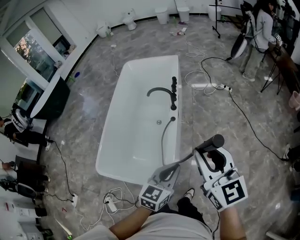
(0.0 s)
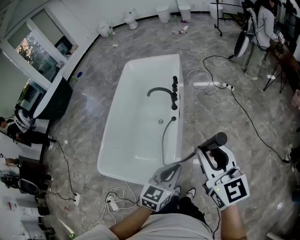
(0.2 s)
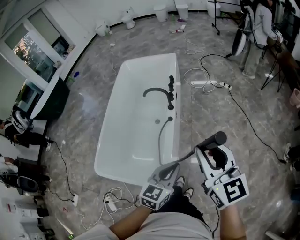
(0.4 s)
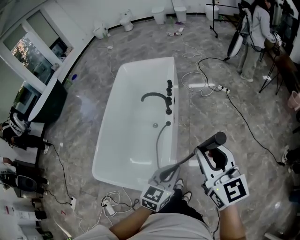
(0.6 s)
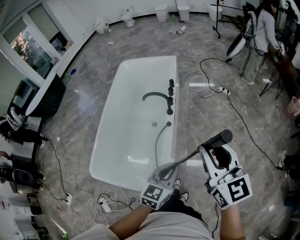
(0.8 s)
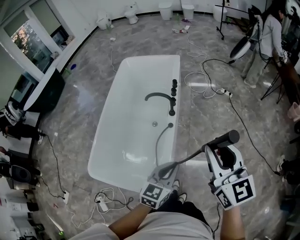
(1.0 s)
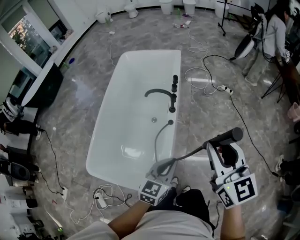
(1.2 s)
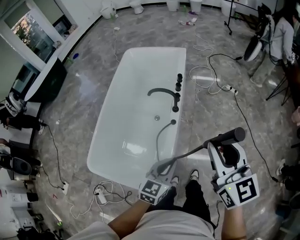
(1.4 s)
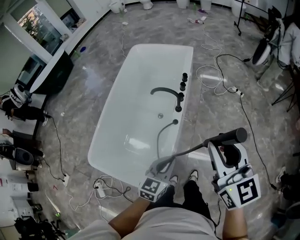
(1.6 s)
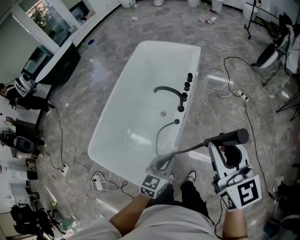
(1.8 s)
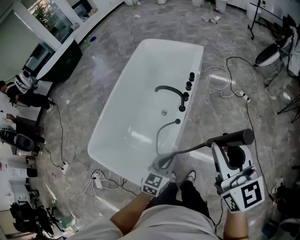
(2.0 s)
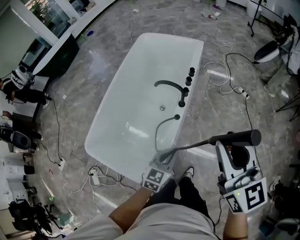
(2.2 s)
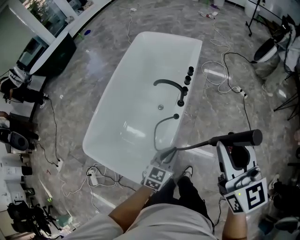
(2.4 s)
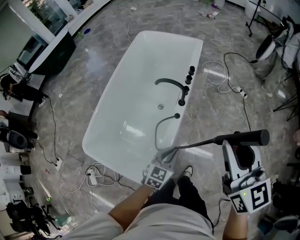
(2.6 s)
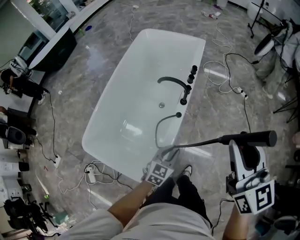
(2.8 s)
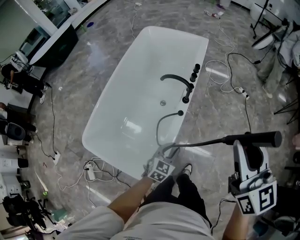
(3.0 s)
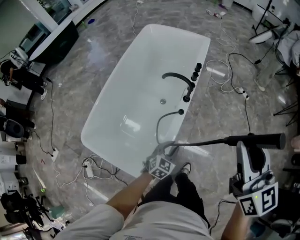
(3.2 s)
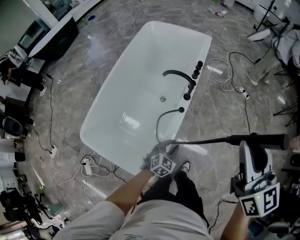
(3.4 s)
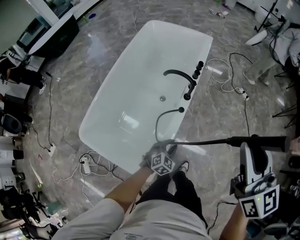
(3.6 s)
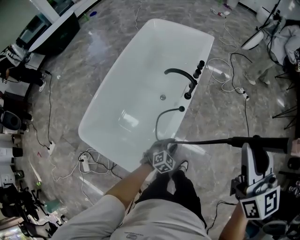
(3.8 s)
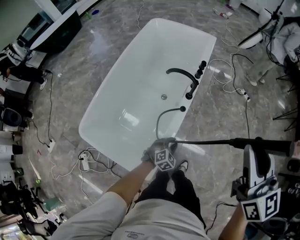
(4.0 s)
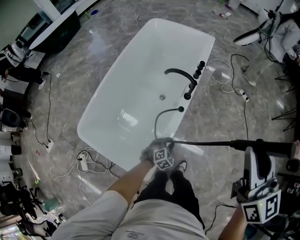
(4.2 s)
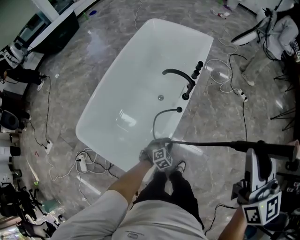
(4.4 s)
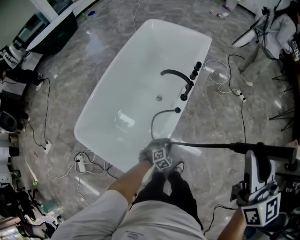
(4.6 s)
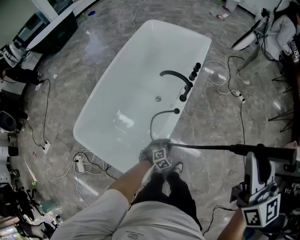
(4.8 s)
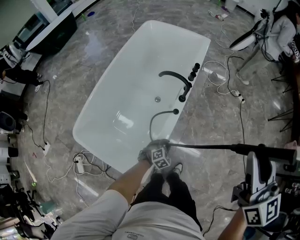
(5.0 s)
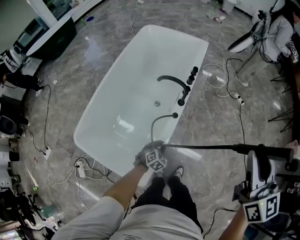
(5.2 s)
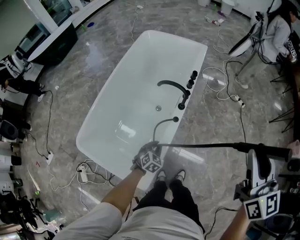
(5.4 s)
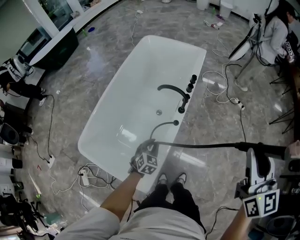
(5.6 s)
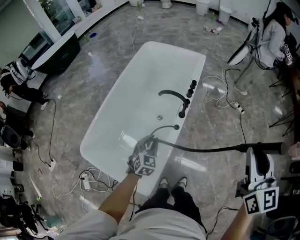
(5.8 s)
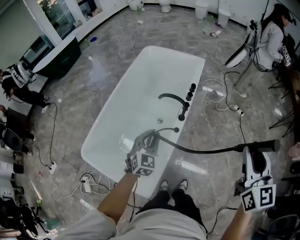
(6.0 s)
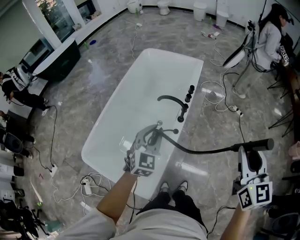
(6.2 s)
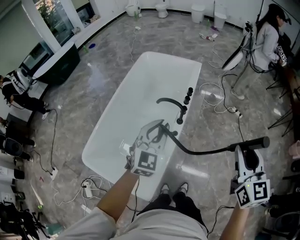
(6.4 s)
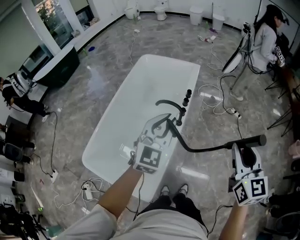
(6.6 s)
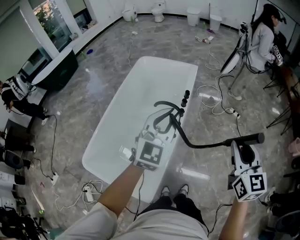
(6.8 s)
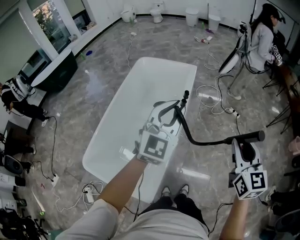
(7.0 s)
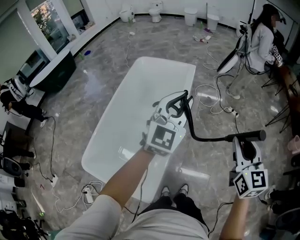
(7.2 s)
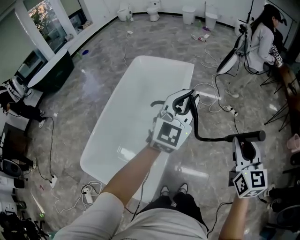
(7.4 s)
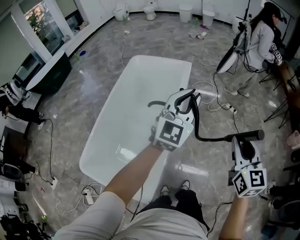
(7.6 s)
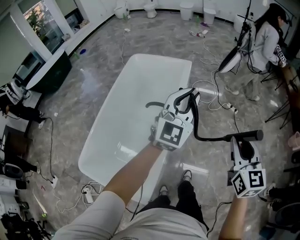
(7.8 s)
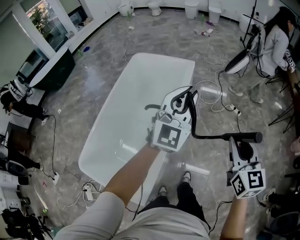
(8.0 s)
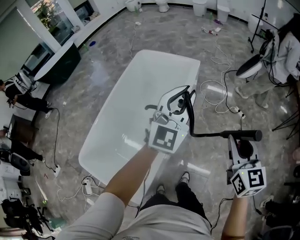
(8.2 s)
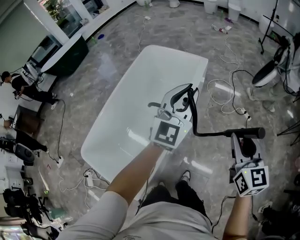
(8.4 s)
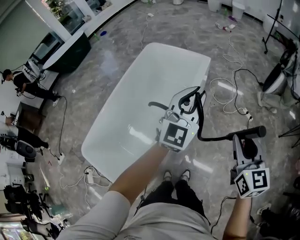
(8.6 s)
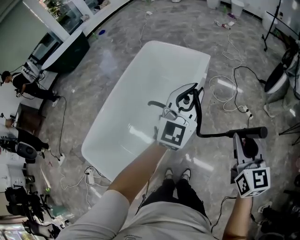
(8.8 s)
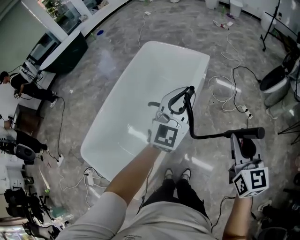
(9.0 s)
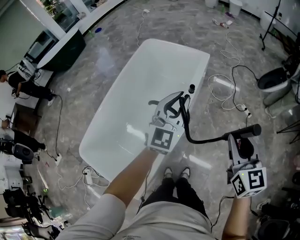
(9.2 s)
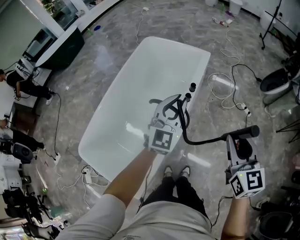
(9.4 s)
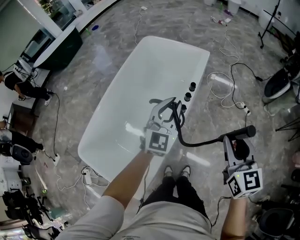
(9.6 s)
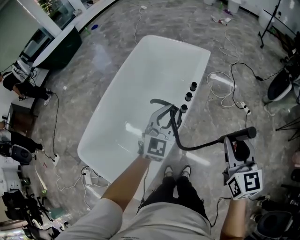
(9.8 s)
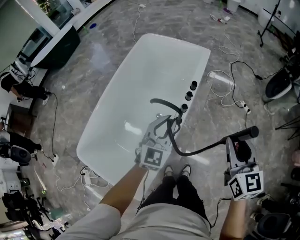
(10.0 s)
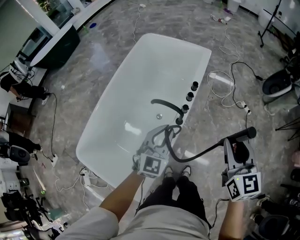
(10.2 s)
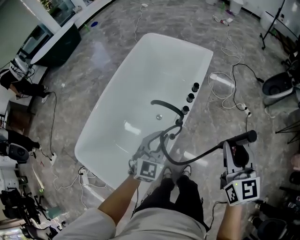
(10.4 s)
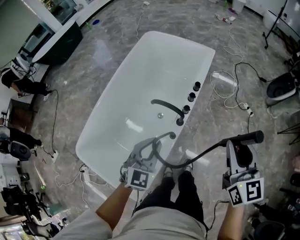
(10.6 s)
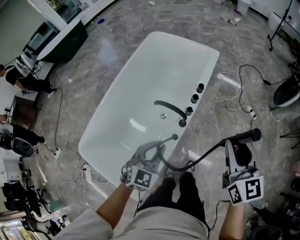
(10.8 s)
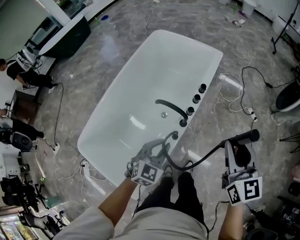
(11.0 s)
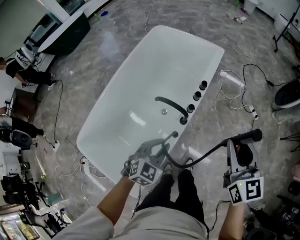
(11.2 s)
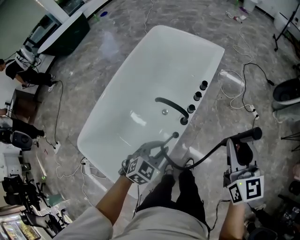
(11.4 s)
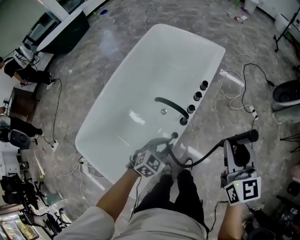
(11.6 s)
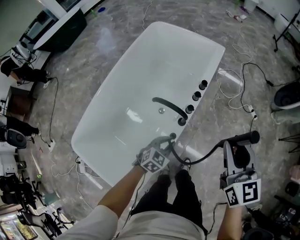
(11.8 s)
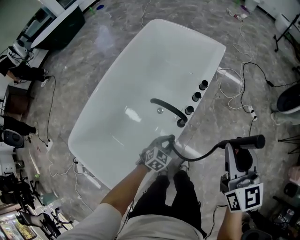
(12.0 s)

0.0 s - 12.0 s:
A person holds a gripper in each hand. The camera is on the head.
0.0 s - 1.6 s: The left gripper moves forward and downward, about 15 cm. Meanwhile the right gripper heads forward, covering approximately 15 cm.
1.6 s - 3.0 s: The left gripper travels downward by roughly 15 cm.
3.0 s - 4.4 s: The left gripper heads downward, covering about 15 cm, and turns by approximately 30 degrees.
4.4 s - 6.0 s: The left gripper is displaced upward by some 30 cm, and tips its fingers upward by roughly 30 degrees; the right gripper goes approximately 5 cm to the right.
6.0 s - 7.6 s: The left gripper shifts roughly 30 cm upward, to the right and forward, and angles its fingers upward, by some 30 degrees.
7.6 s - 9.0 s: Both grippers travel together forward, about 15 cm.
9.0 s - 10.4 s: The left gripper moves downward, to the left and backward, some 25 cm, and changes its angle by about 20 degrees. Meanwhile the right gripper moves to the left, some 10 cm.
10.4 s - 12.0 s: The left gripper travels downward by approximately 25 cm, and rotates approximately 30 degrees. The right gripper travels forward by some 5 cm.

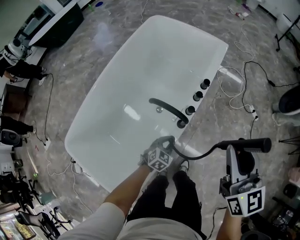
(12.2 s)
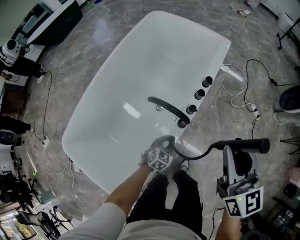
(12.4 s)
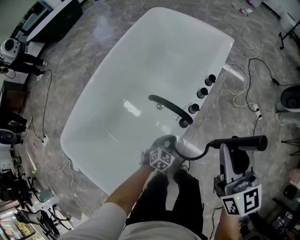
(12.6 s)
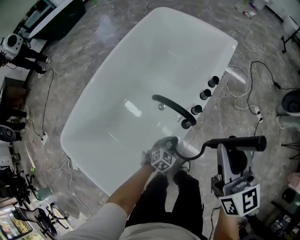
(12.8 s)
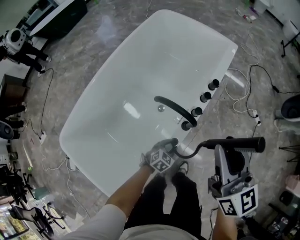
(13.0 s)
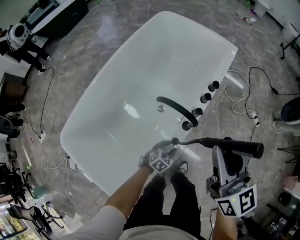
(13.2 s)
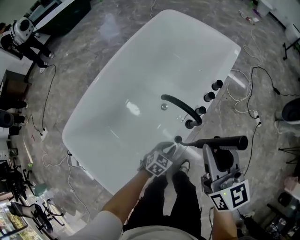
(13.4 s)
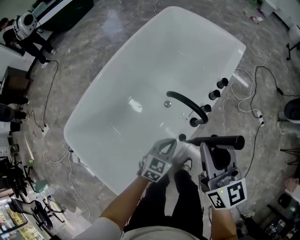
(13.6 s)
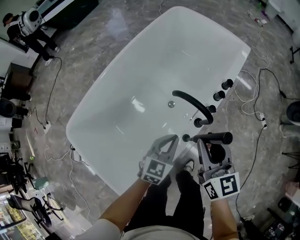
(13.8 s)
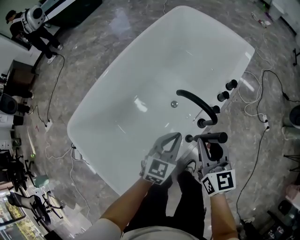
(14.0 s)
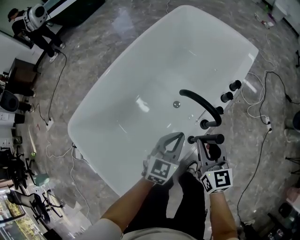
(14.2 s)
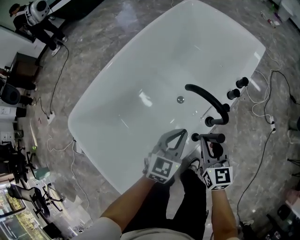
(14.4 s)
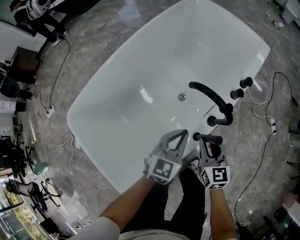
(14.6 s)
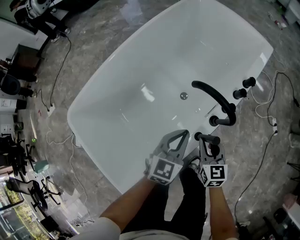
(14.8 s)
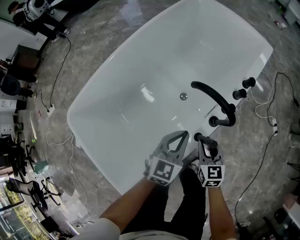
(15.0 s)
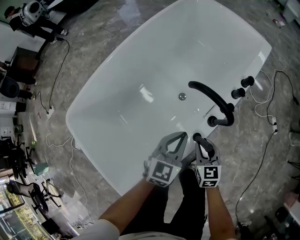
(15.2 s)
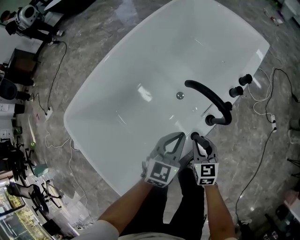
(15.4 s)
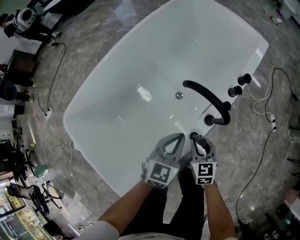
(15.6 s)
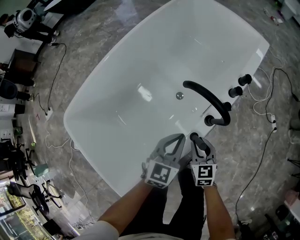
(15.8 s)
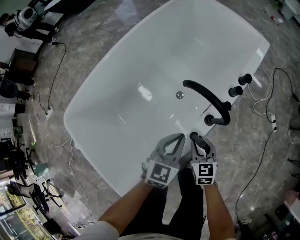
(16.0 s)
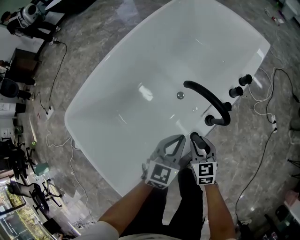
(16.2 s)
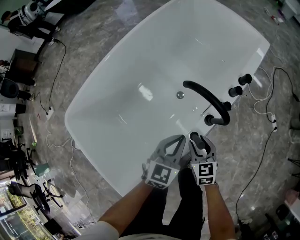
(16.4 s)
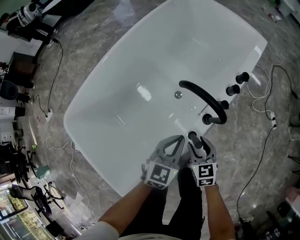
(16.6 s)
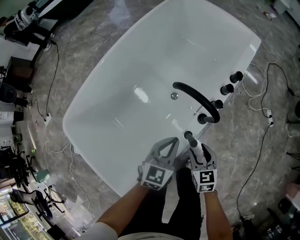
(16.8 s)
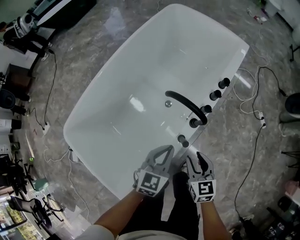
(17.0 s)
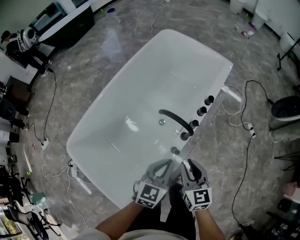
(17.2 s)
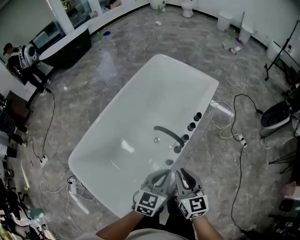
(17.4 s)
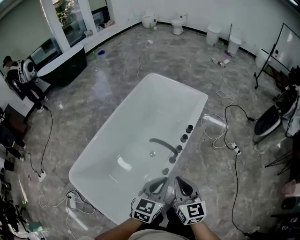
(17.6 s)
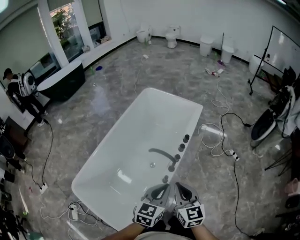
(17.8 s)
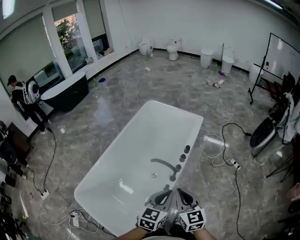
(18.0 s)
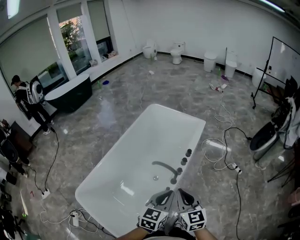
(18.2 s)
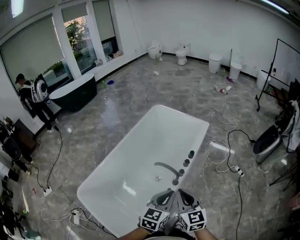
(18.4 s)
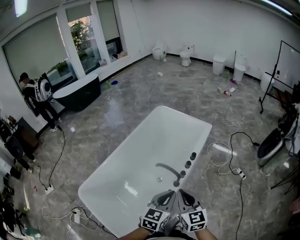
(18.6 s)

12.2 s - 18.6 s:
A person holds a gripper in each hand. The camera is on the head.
12.2 s - 13.8 s: The left gripper travels upward and to the left by approximately 15 cm, and rotates some 30 degrees. The right gripper heads to the left and downward, covering approximately 20 cm.
13.8 s - 15.4 s: The right gripper goes some 25 cm downward, and turns by approximately 20 degrees.
15.4 s - 17.0 s: The right gripper is displaced upward by some 10 cm; the left gripper shifts by about 5 cm.
17.0 s - 18.6 s: Both grippers move upward, some 30 cm. The right gripper changes its angle by approximately 20 degrees, and closes its fingers.

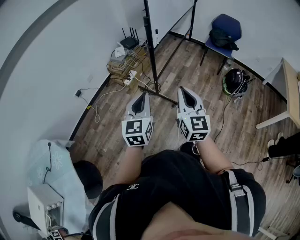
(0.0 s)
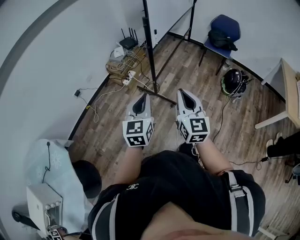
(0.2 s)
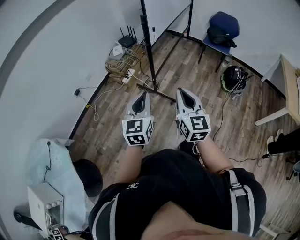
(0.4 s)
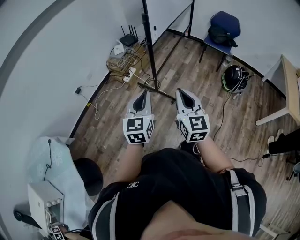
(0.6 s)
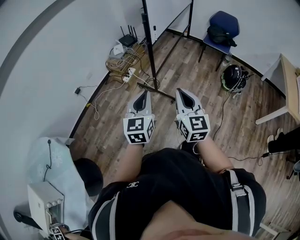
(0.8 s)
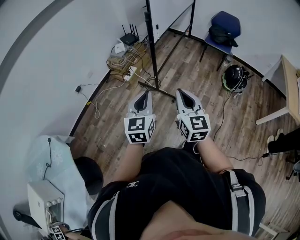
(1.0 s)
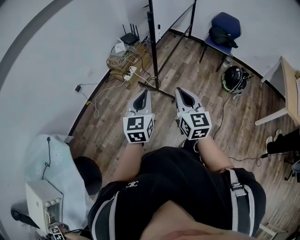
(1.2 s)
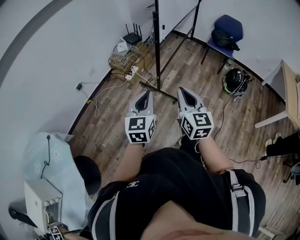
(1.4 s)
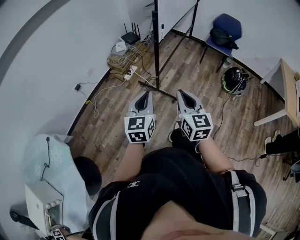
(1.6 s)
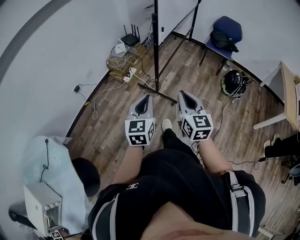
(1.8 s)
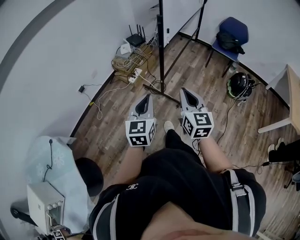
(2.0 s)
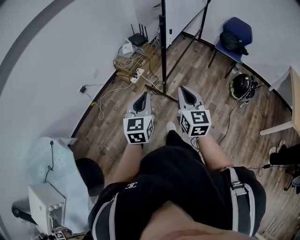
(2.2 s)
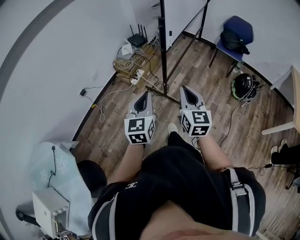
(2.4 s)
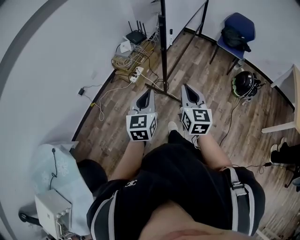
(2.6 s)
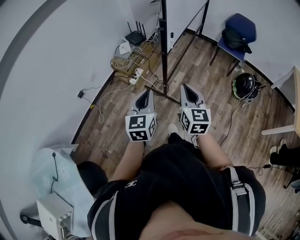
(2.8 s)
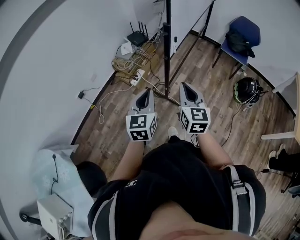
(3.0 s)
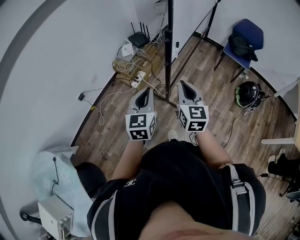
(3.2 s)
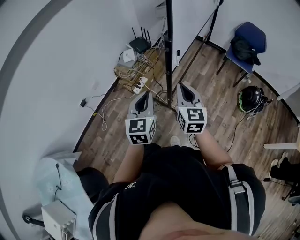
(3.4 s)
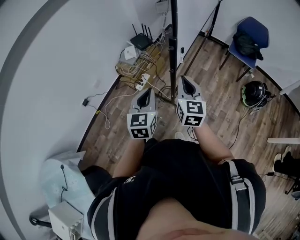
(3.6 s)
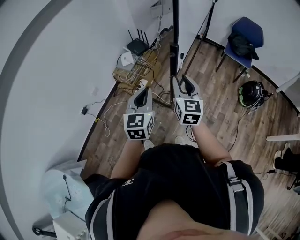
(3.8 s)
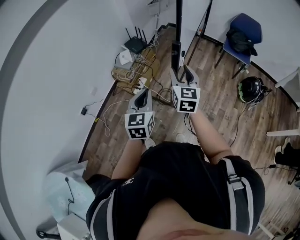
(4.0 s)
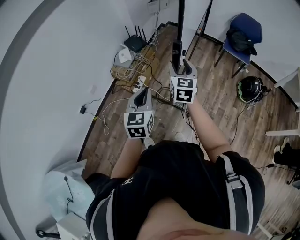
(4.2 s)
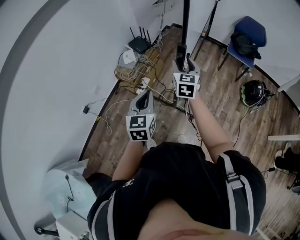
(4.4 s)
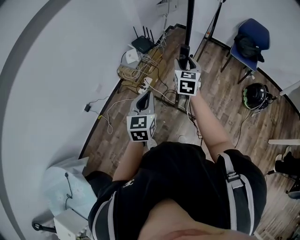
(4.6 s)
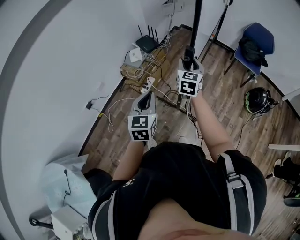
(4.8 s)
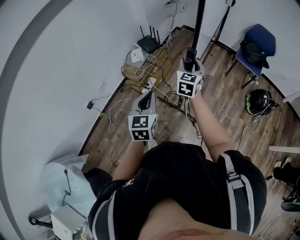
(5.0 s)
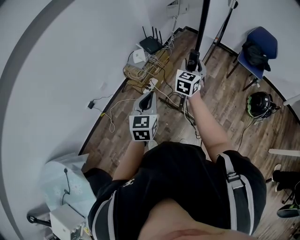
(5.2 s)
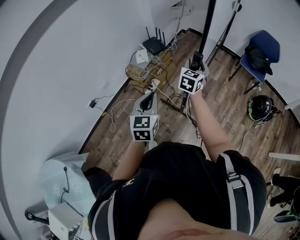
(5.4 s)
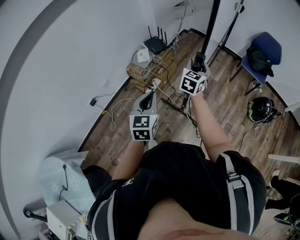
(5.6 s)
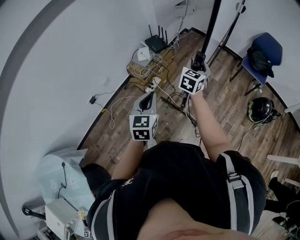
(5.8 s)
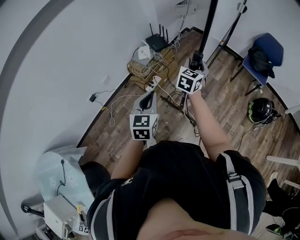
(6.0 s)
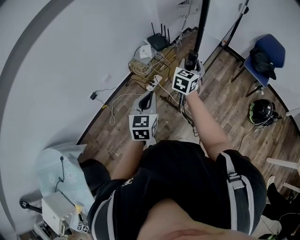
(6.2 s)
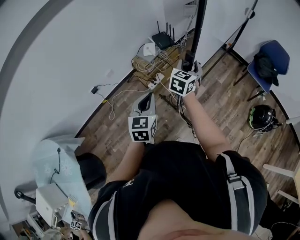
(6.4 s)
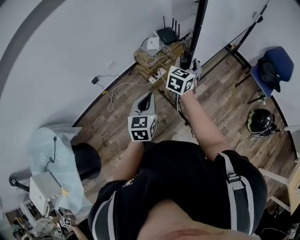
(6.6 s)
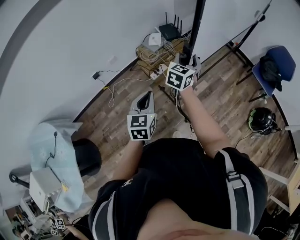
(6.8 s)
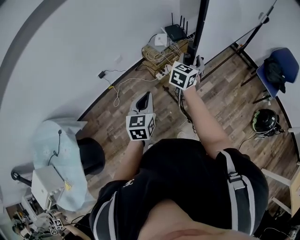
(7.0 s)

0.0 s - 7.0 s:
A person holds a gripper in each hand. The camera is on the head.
0.0 s - 1.4 s: The left gripper changes place by roughly 5 cm, while the right gripper changes place by some 5 cm.
1.4 s - 2.8 s: Both grippers move forward, about 20 cm.
2.8 s - 4.2 s: The left gripper shifts about 20 cm forward. The right gripper is displaced forward by approximately 30 cm, and opens its fingers.
4.2 s - 5.6 s: The right gripper shifts some 10 cm forward.
5.6 s - 7.0 s: The left gripper is displaced backward by approximately 10 cm. The right gripper is displaced to the left and backward by roughly 10 cm.
